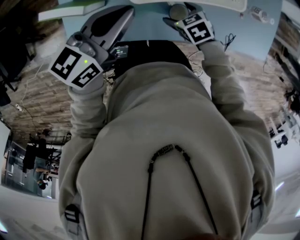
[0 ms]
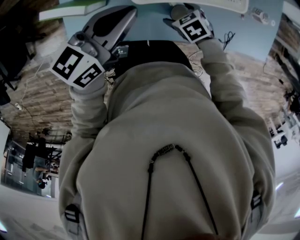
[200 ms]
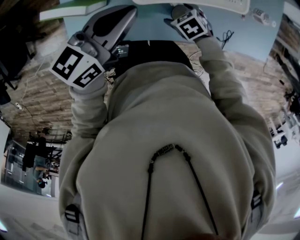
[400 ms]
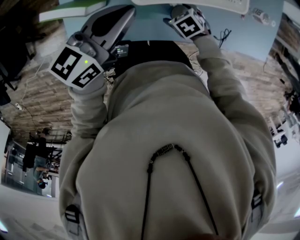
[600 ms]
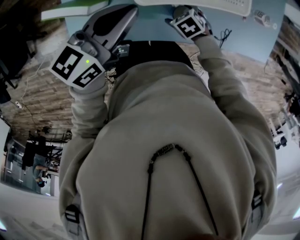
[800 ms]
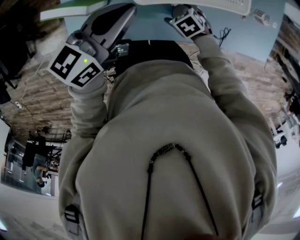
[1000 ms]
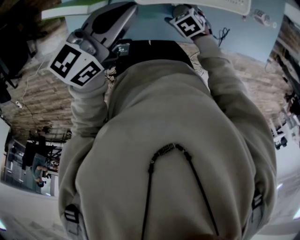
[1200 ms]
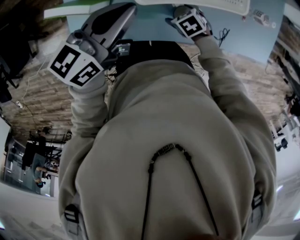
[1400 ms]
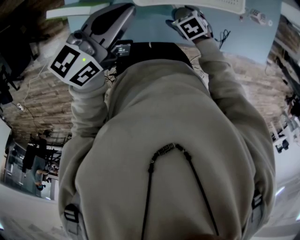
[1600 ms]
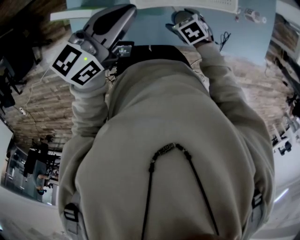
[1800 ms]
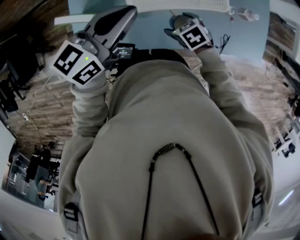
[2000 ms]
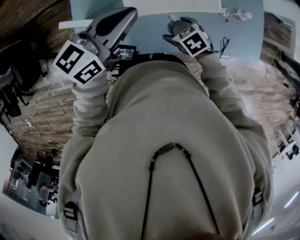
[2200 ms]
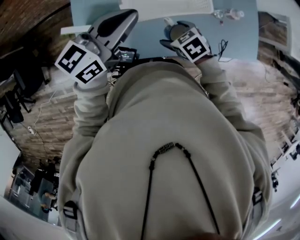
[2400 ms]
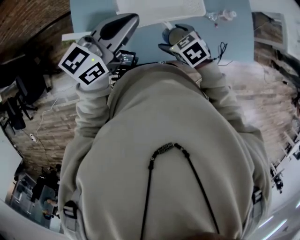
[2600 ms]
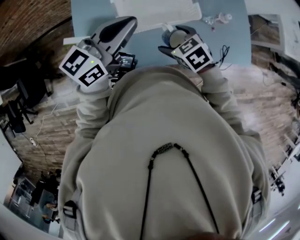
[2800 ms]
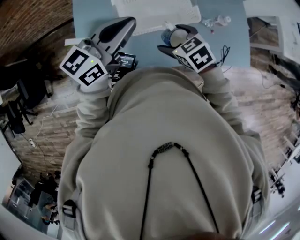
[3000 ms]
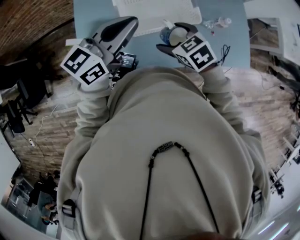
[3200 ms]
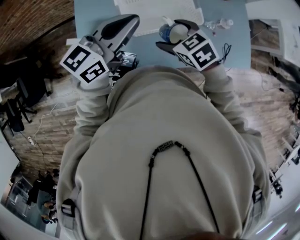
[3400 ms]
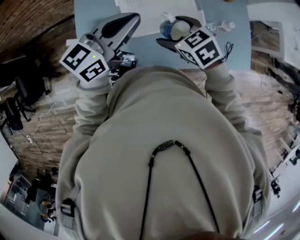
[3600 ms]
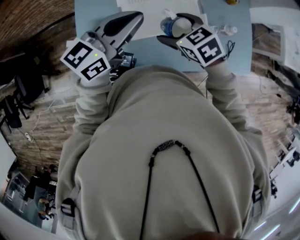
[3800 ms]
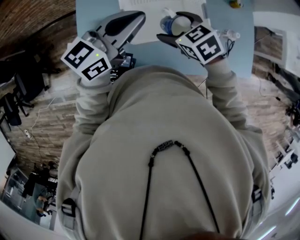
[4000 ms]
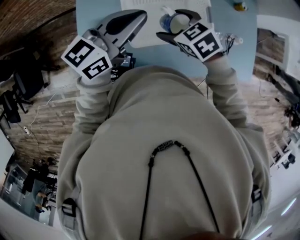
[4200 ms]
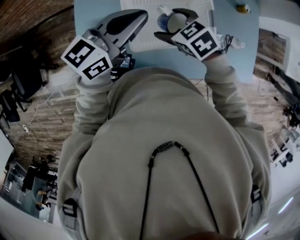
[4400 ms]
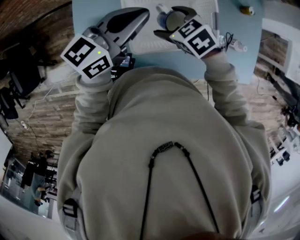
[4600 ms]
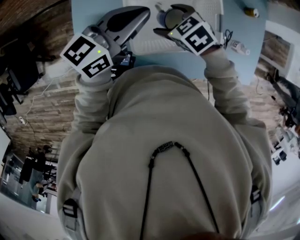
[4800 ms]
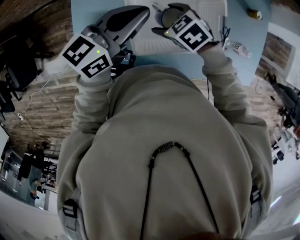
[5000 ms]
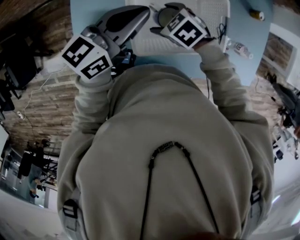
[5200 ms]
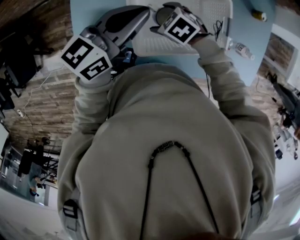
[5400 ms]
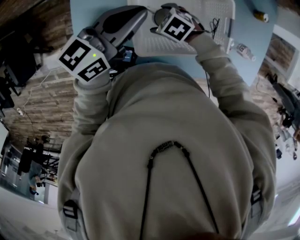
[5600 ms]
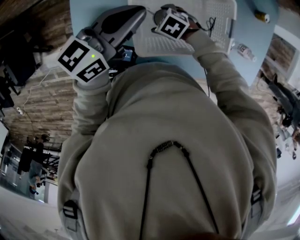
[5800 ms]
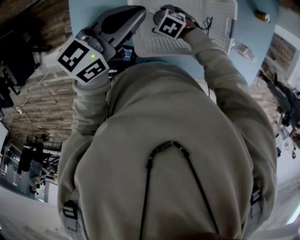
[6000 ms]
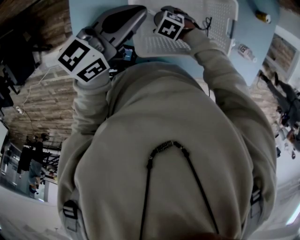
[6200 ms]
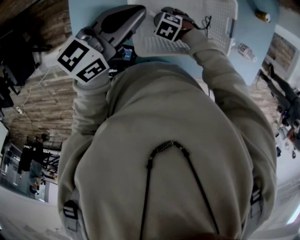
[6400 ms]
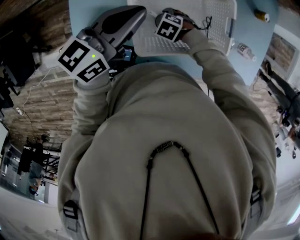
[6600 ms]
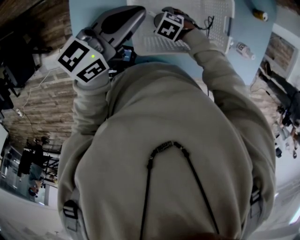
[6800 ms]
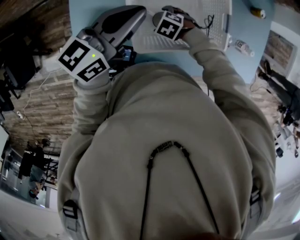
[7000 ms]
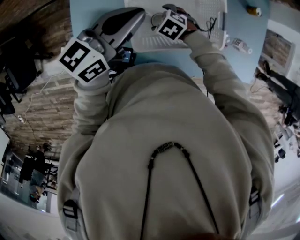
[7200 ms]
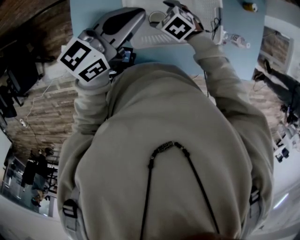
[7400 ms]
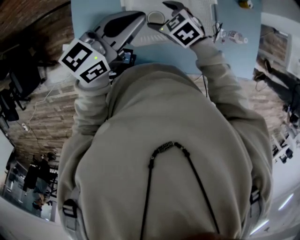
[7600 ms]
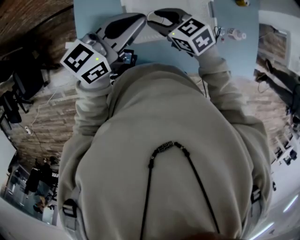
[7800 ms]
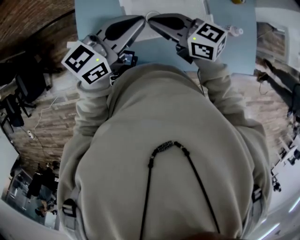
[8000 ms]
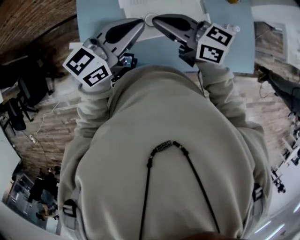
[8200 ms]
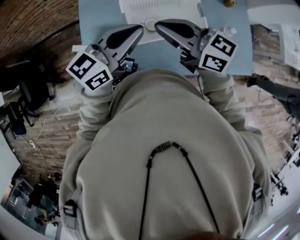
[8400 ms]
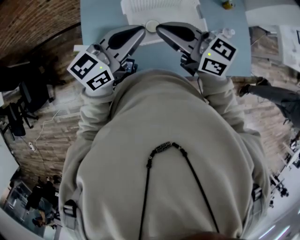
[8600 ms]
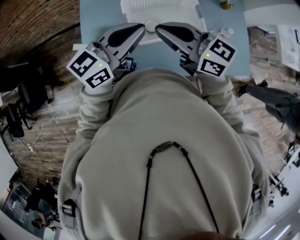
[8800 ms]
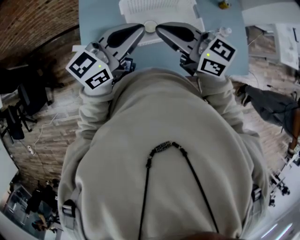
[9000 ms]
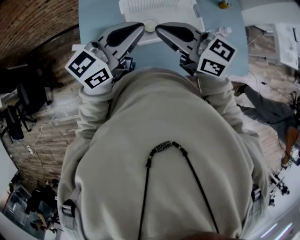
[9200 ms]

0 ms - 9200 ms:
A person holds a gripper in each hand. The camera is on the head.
0 ms - 1600 ms: The grippers stay close to where they were, moving slightly.
1600 ms - 3000 ms: The left gripper goes roughly 10 cm upward, while the right gripper moves upward, some 25 cm, and rotates roughly 20 degrees.
3000 ms - 4600 ms: Both grippers travel together forward, some 15 cm.
4600 ms - 6200 ms: The left gripper moves downward, approximately 5 cm. Meanwhile the right gripper shifts some 20 cm downward, and changes its angle by about 30 degrees.
6200 ms - 7600 ms: The left gripper ends up approximately 10 cm from where it was. Meanwhile the right gripper is displaced upward by some 15 cm, and rotates approximately 30 degrees.
7600 ms - 9200 ms: The right gripper heads upward and backward, covering about 30 cm, tilts its fingers roughly 50 degrees upward, and closes. The left gripper moves backward and upward, some 15 cm.

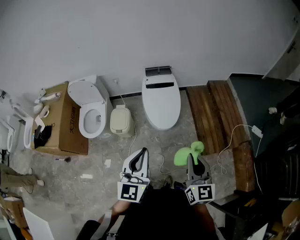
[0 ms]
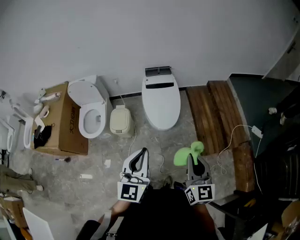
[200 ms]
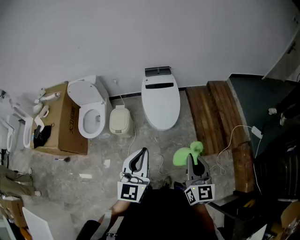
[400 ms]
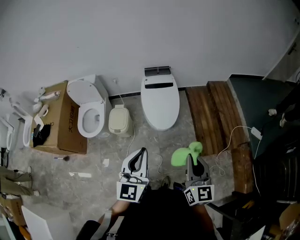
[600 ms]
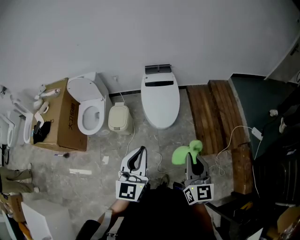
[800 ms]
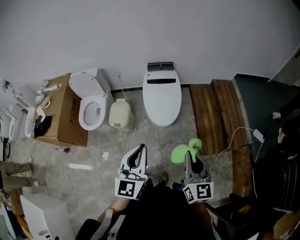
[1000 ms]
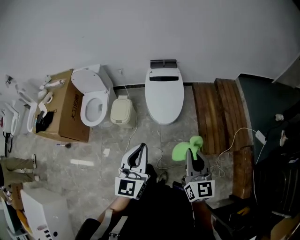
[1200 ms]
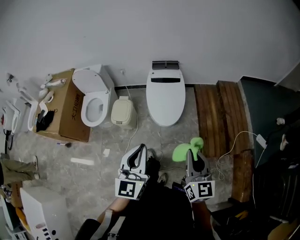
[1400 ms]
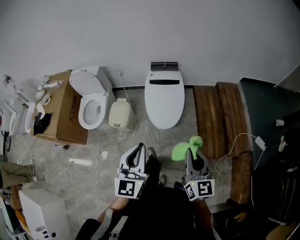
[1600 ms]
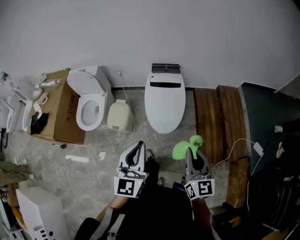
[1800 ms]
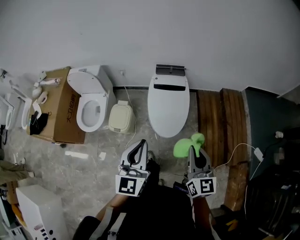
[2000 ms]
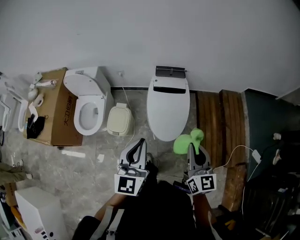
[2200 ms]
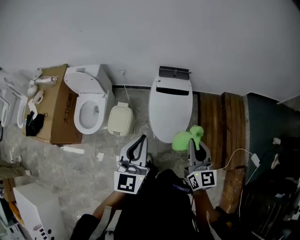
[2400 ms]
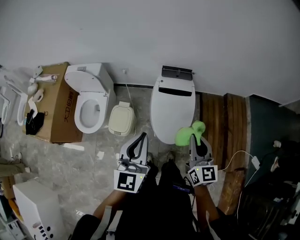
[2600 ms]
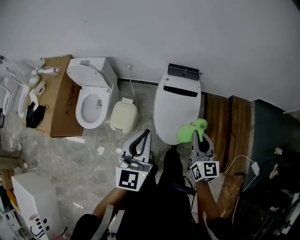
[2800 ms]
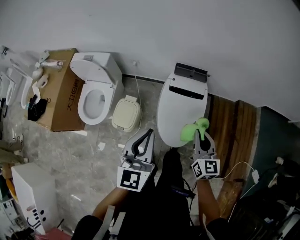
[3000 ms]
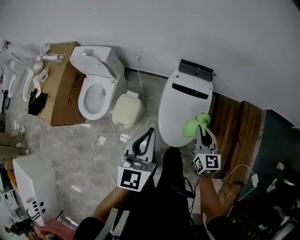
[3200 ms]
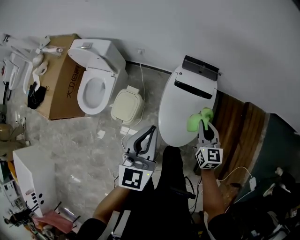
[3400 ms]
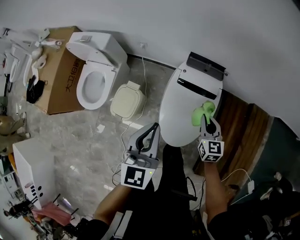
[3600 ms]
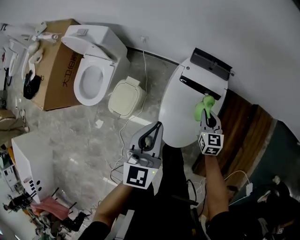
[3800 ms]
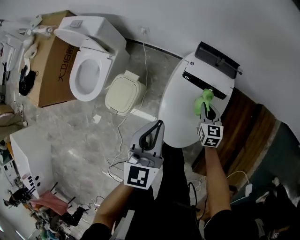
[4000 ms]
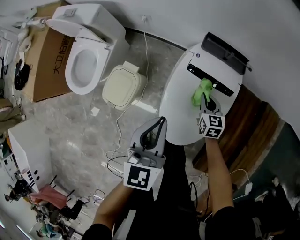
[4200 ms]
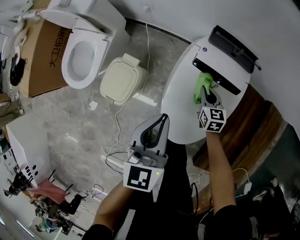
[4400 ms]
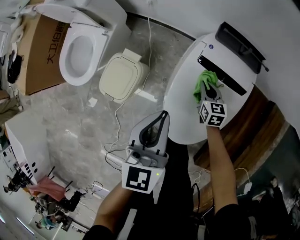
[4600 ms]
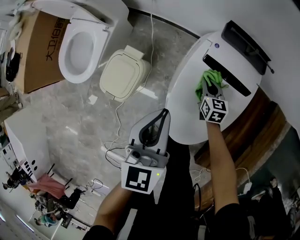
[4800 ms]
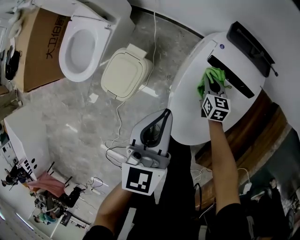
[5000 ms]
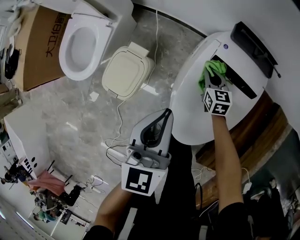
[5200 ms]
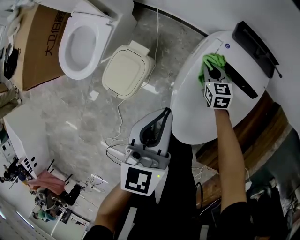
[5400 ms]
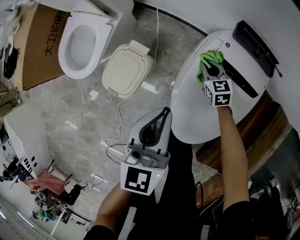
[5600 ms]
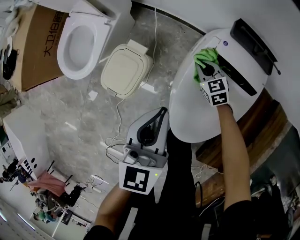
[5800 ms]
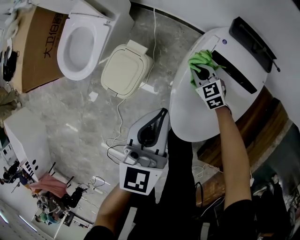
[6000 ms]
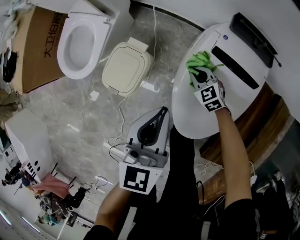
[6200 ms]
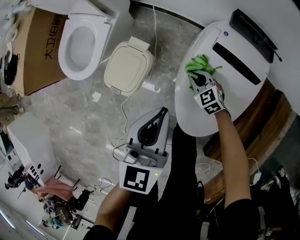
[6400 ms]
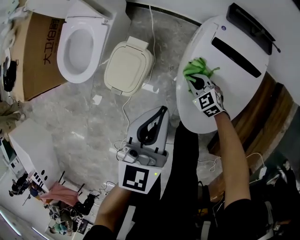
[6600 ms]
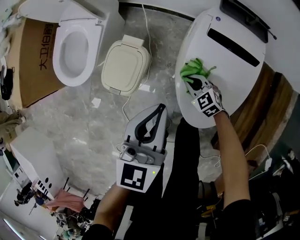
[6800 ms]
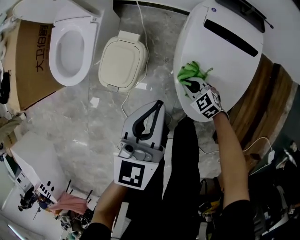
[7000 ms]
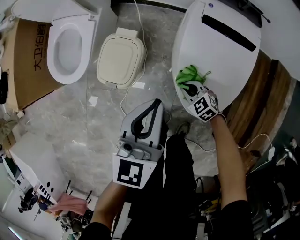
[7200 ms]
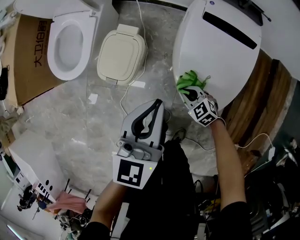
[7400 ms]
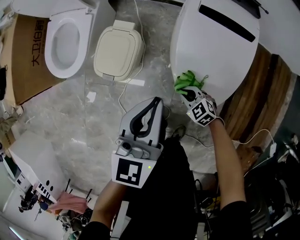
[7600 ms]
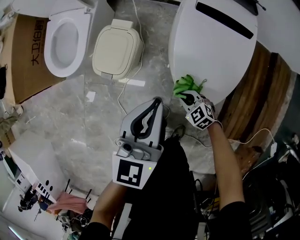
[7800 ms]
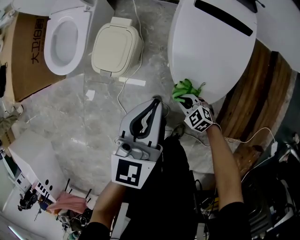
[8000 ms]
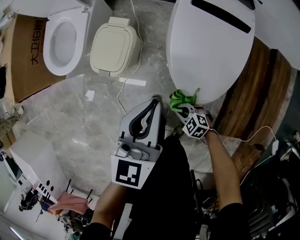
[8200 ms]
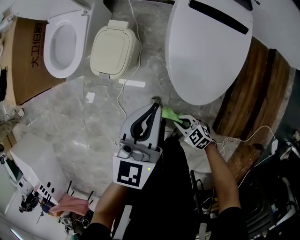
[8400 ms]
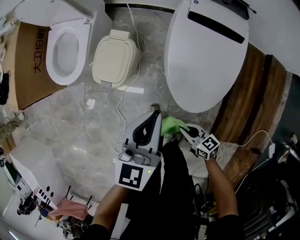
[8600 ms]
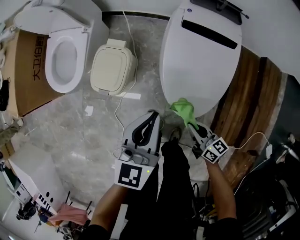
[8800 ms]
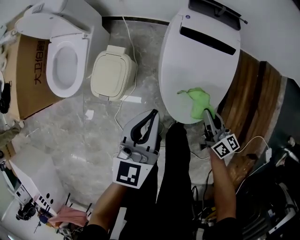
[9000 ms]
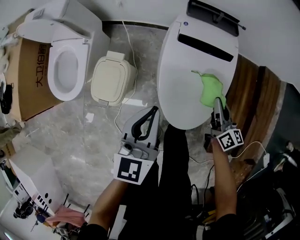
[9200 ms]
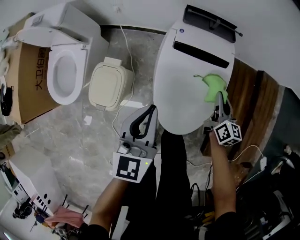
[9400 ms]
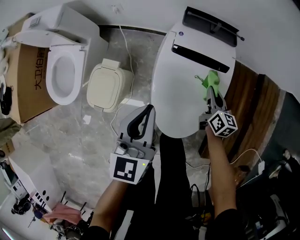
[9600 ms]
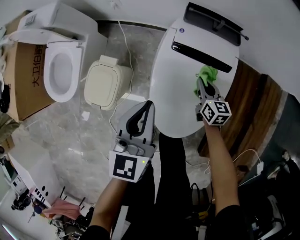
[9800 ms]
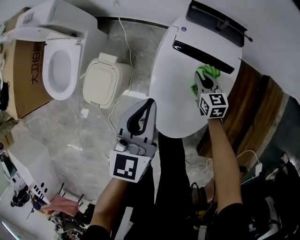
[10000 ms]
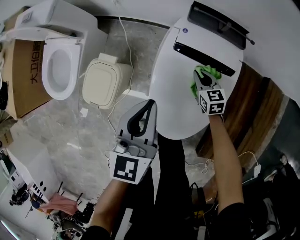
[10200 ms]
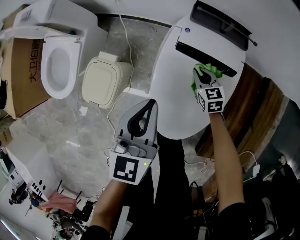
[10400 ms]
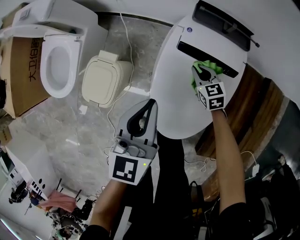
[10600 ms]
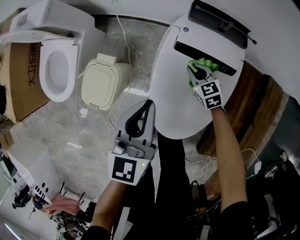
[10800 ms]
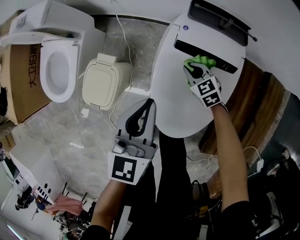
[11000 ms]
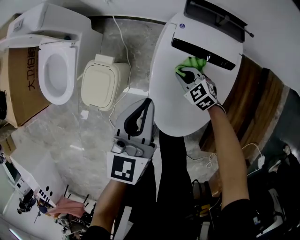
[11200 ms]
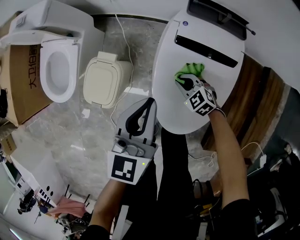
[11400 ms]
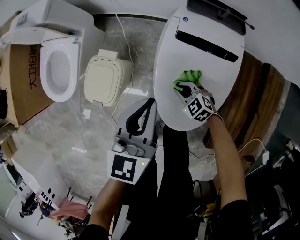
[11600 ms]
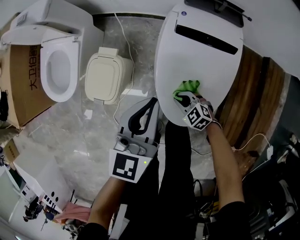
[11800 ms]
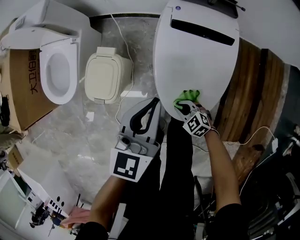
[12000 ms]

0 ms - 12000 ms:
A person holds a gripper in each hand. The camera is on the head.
0 ms - 1600 ms: Both grippers move forward, roughly 10 cm.
1600 ms - 3000 ms: The grippers both shift forward by about 35 cm.
3000 ms - 4400 ms: The right gripper heads downward and forward, covering about 50 cm, and swivels approximately 30 degrees; the left gripper heads downward and forward, covering approximately 30 cm.
4400 ms - 6000 ms: The right gripper is displaced to the left and downward by some 15 cm, and turns by some 40 degrees, while the left gripper shifts approximately 5 cm to the left.
6000 ms - 7600 ms: The right gripper is displaced backward and to the left by about 30 cm. The left gripper shifts about 15 cm backward and to the left.
7600 ms - 9000 ms: The left gripper shifts by approximately 5 cm. The right gripper travels upward by about 20 cm, and tips its fingers upward by roughly 30 degrees.
9000 ms - 10400 ms: The right gripper heads forward and downward, covering approximately 30 cm, and swivels about 50 degrees; the left gripper goes about 15 cm forward and to the right.
10400 ms - 12000 ms: The right gripper goes some 30 cm backward and to the left, and rotates approximately 30 degrees; the left gripper moves backward, about 10 cm.

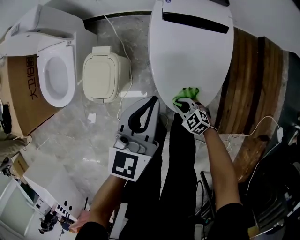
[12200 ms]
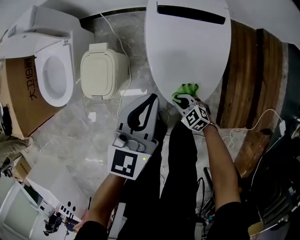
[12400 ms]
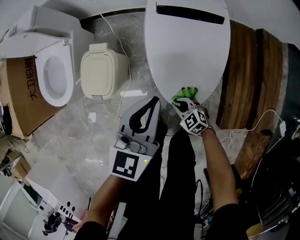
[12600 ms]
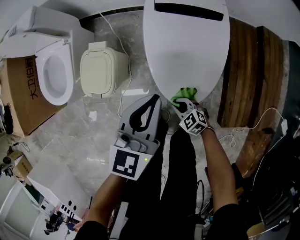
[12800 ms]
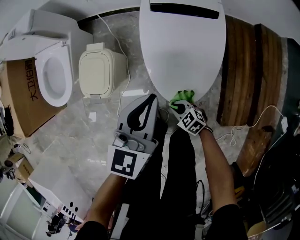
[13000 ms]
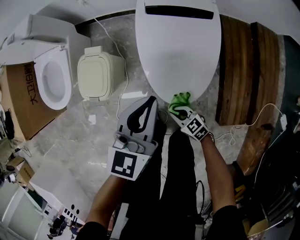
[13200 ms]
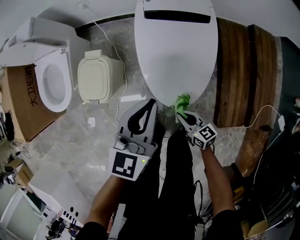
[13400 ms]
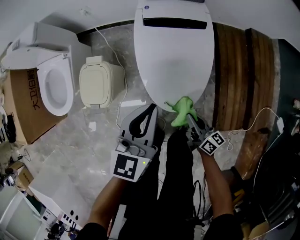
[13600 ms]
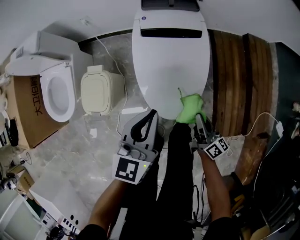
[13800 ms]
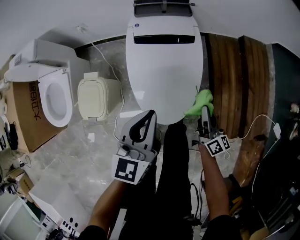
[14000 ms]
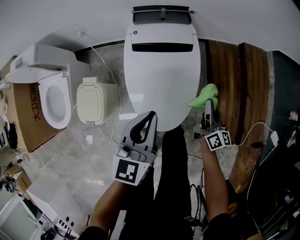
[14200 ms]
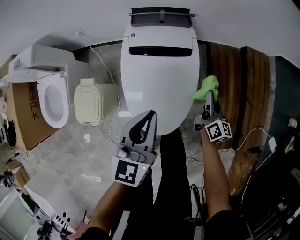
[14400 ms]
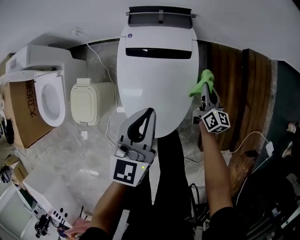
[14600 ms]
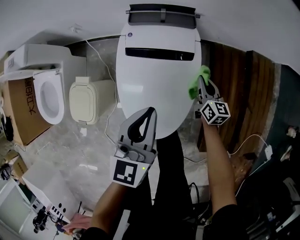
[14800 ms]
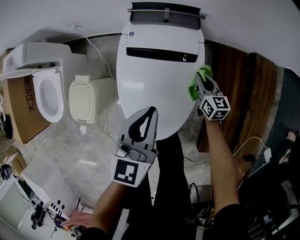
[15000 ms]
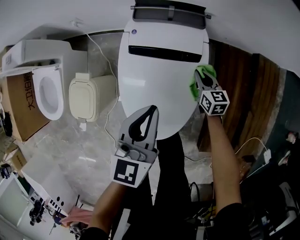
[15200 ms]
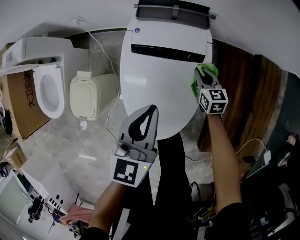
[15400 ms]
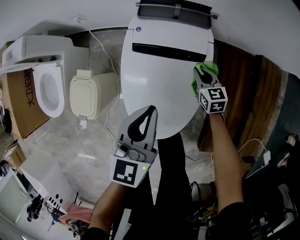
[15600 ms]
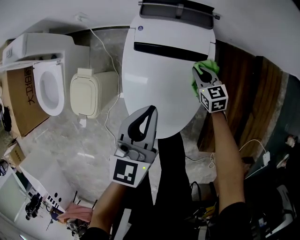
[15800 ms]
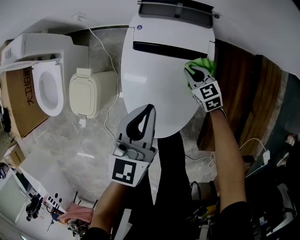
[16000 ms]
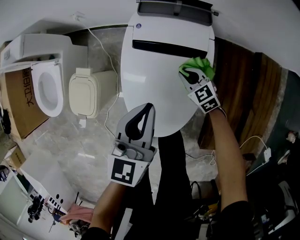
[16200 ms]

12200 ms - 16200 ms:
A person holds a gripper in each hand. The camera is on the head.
12200 ms - 13600 ms: The right gripper shifts about 20 cm upward, to the right and backward, and points its fingers approximately 30 degrees further upward. Meanwhile the left gripper moves backward, about 5 cm.
13600 ms - 14800 ms: The right gripper shifts approximately 35 cm forward, and rotates approximately 30 degrees. Meanwhile the left gripper heads forward and to the right, covering some 20 cm.
14800 ms - 16200 ms: The right gripper is displaced to the left and downward by some 15 cm, and swivels some 50 degrees. The left gripper changes place by roughly 5 cm.
